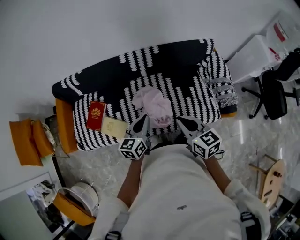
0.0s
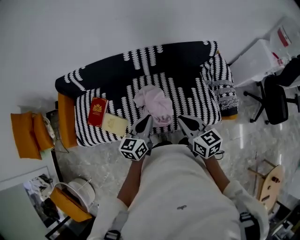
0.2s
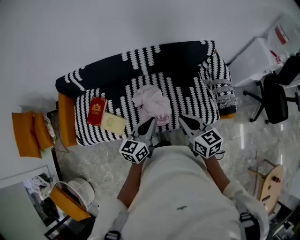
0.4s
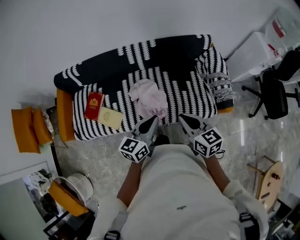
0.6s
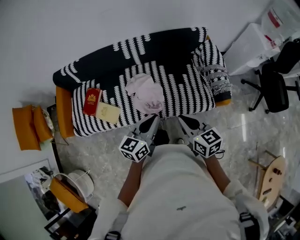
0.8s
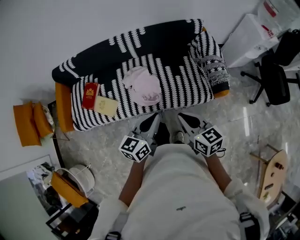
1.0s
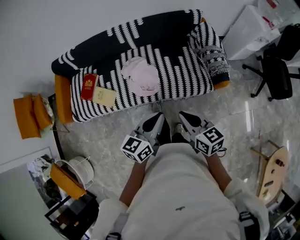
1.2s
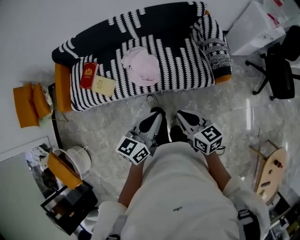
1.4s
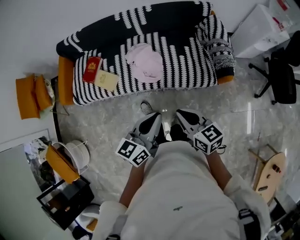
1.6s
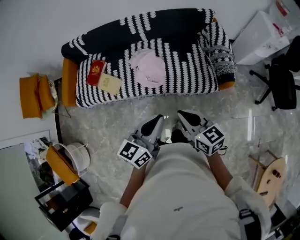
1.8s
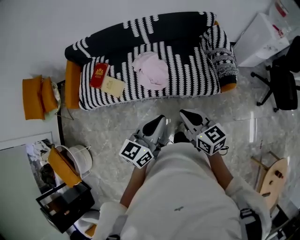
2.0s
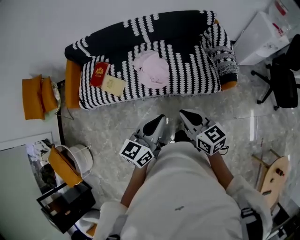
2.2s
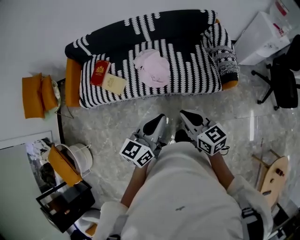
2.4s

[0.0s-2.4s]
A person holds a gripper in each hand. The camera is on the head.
0.0s to 1.2s: Both grippers move backward and to the right, some 30 cm.
1.2s to 2.4s: The two grippers go approximately 5 cm backward.

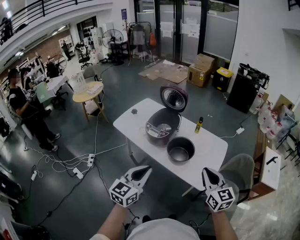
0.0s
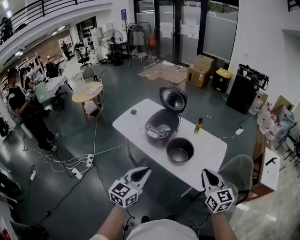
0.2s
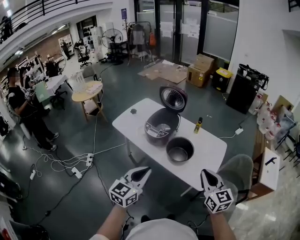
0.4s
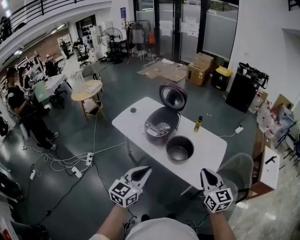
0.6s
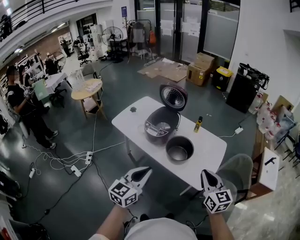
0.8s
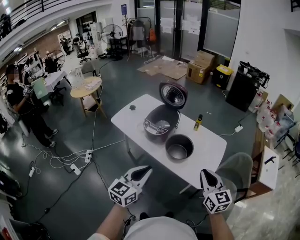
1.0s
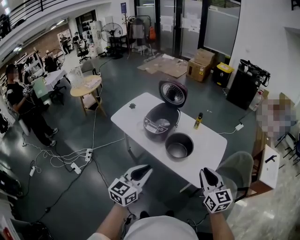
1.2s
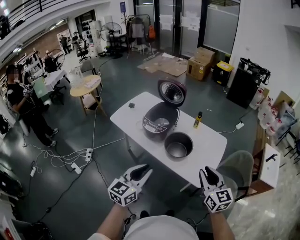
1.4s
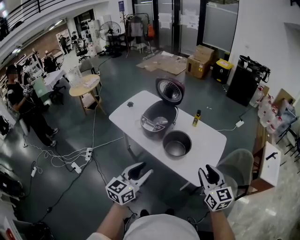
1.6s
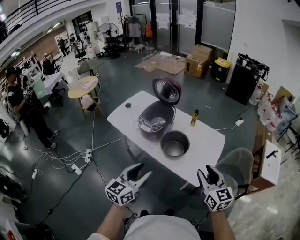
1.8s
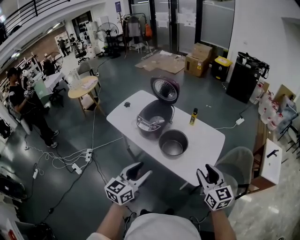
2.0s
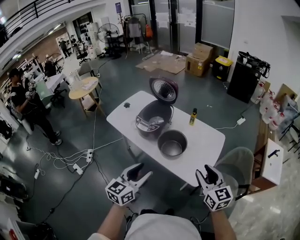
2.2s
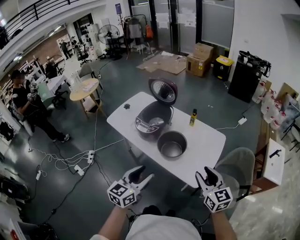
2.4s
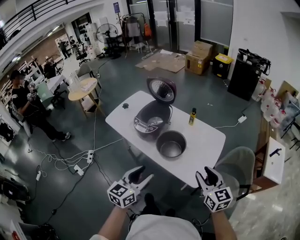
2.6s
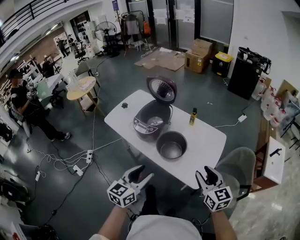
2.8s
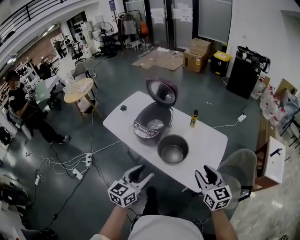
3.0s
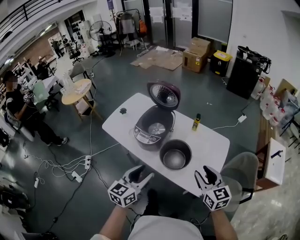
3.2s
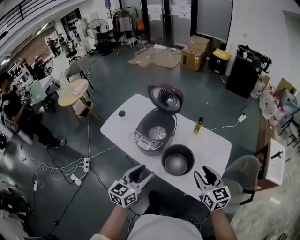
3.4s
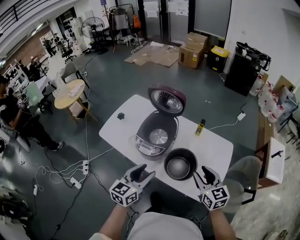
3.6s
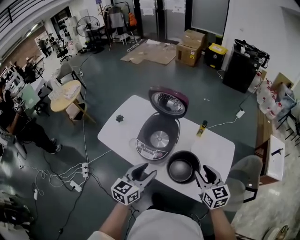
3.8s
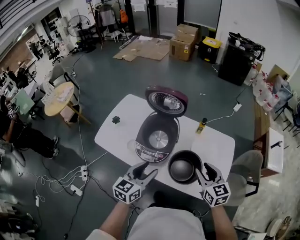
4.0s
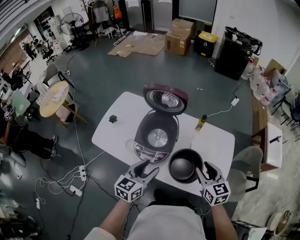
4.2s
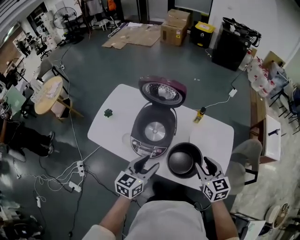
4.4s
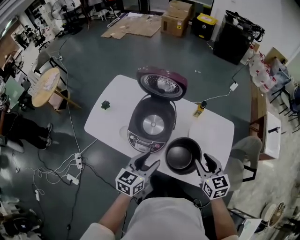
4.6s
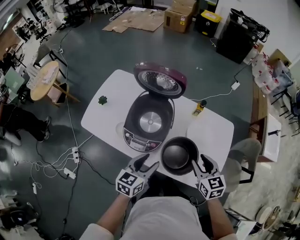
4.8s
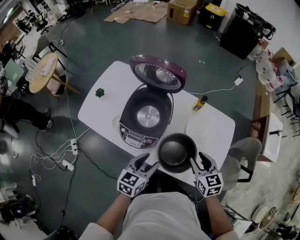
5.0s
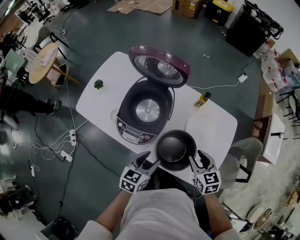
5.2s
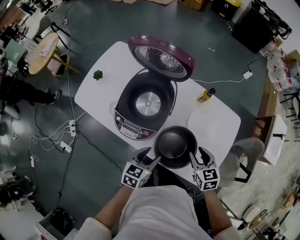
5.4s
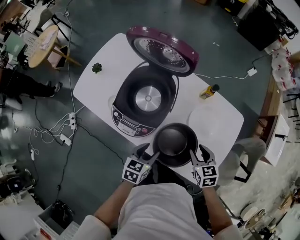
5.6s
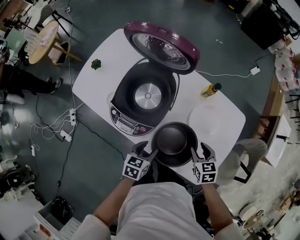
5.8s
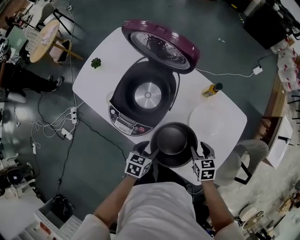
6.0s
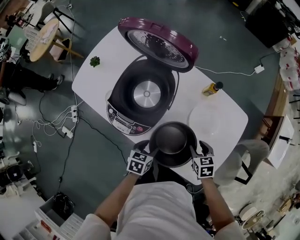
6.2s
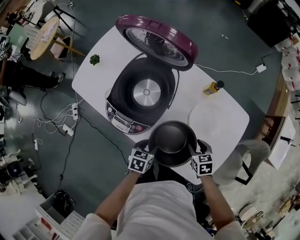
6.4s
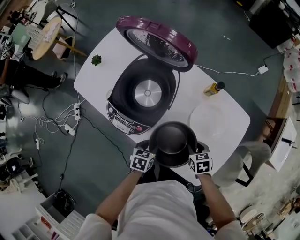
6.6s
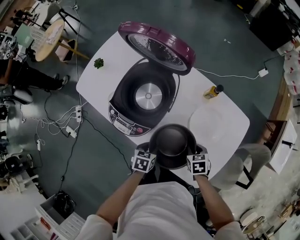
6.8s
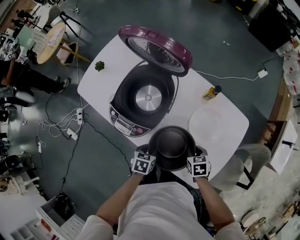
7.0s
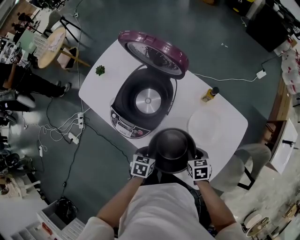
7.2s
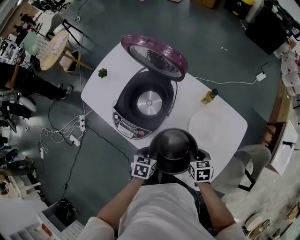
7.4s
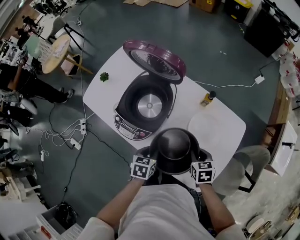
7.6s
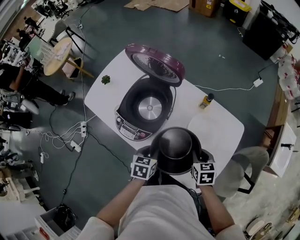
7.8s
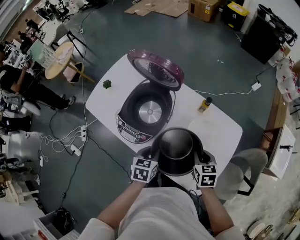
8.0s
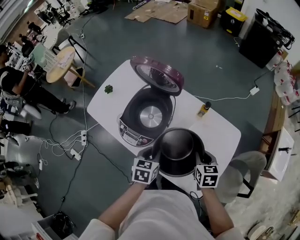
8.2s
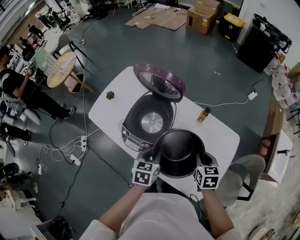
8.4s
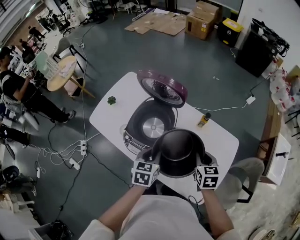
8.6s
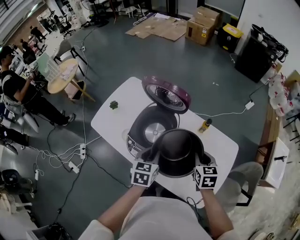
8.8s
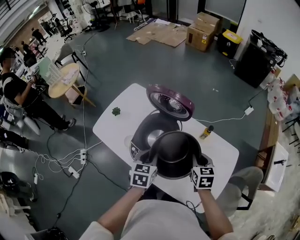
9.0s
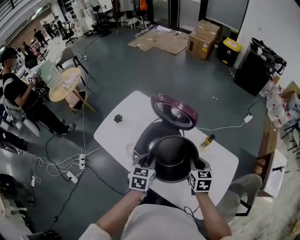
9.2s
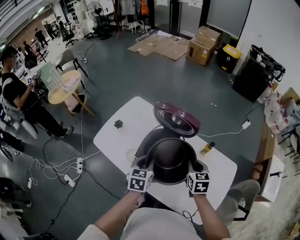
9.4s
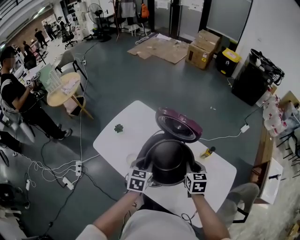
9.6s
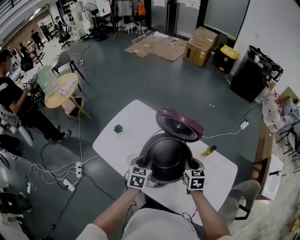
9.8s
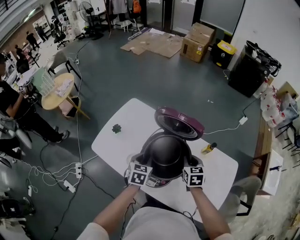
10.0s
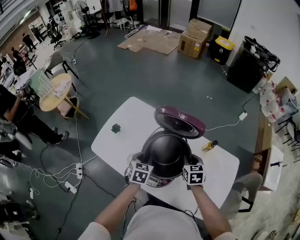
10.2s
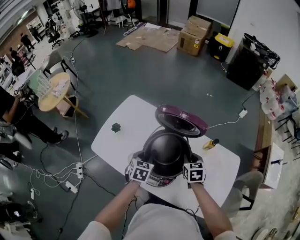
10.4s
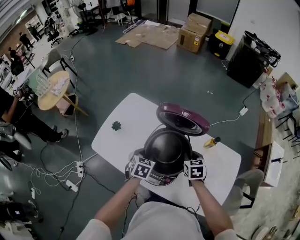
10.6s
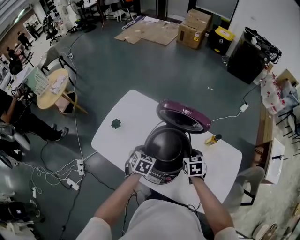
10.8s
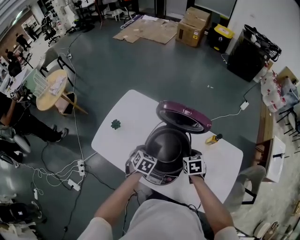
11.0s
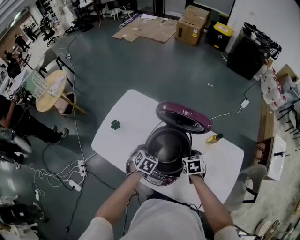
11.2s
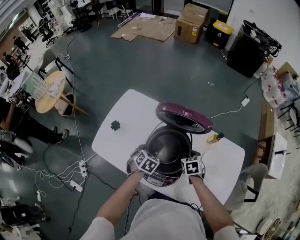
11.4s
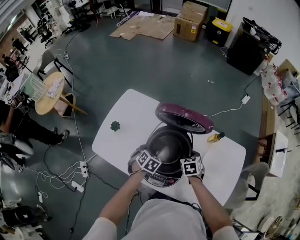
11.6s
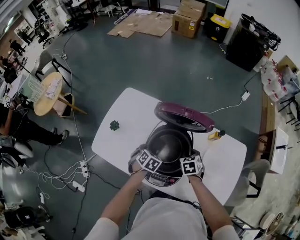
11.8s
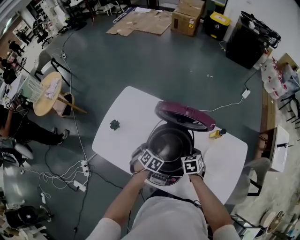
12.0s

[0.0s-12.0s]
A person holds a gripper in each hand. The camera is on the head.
0.0s to 1.6s: The left gripper opens its fingers; the right gripper opens its fingers.
1.6s to 3.0s: Both grippers move forward, about 10 cm.
3.0s to 4.4s: Both grippers move forward and to the left, some 25 cm.
4.4s to 6.0s: The two grippers go roughly 25 cm downward. The right gripper changes its angle by about 30 degrees. Meanwhile the left gripper tilts its fingers roughly 30 degrees downward.
6.0s to 7.6s: The left gripper changes place by roughly 5 cm, and closes up, while the right gripper closes.
7.6s to 9.0s: Both grippers move upward, forward and to the left, roughly 20 cm.
9.0s to 10.4s: Both grippers travel together to the left, forward and downward, approximately 15 cm.
10.4s to 12.0s: The two grippers go some 10 cm downward. The left gripper swivels roughly 30 degrees.

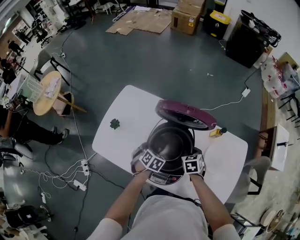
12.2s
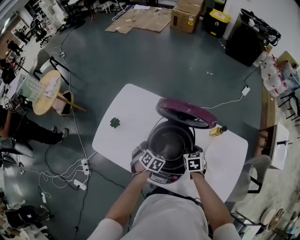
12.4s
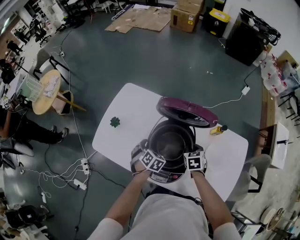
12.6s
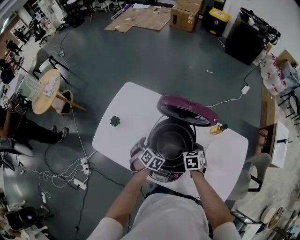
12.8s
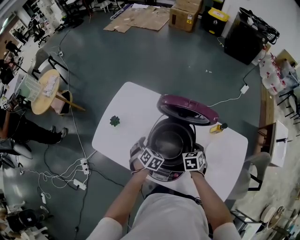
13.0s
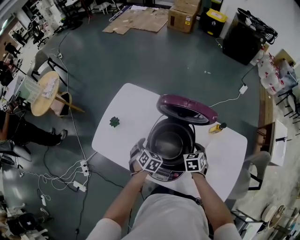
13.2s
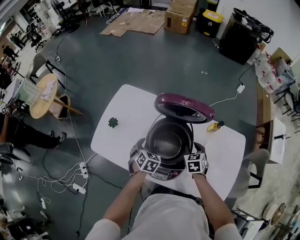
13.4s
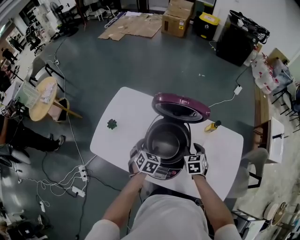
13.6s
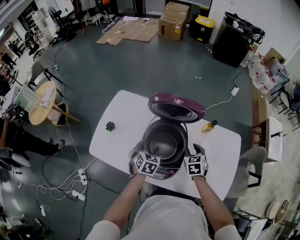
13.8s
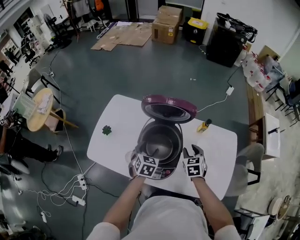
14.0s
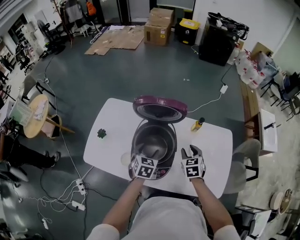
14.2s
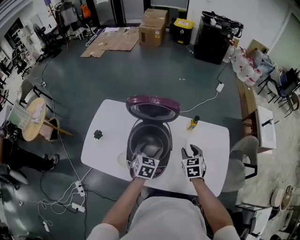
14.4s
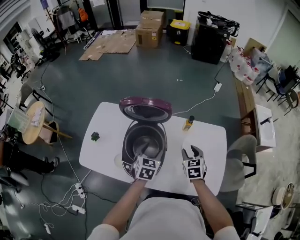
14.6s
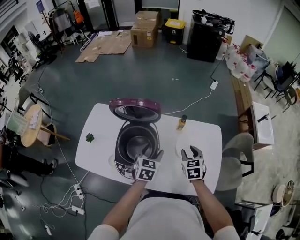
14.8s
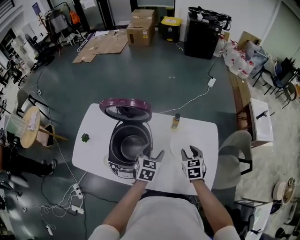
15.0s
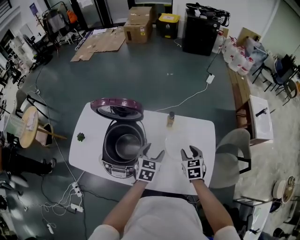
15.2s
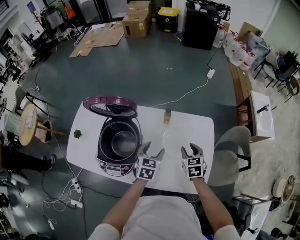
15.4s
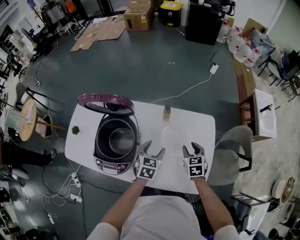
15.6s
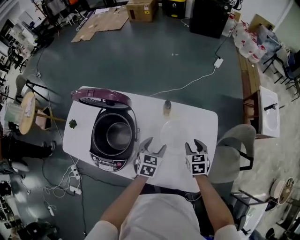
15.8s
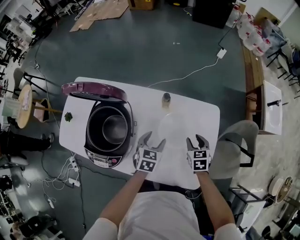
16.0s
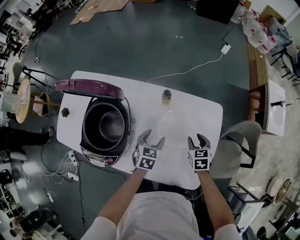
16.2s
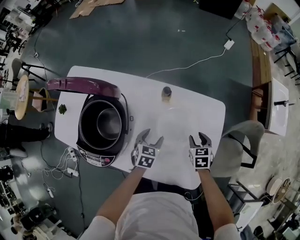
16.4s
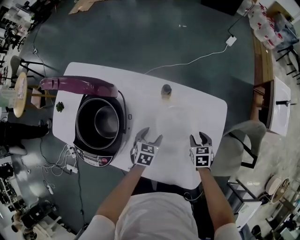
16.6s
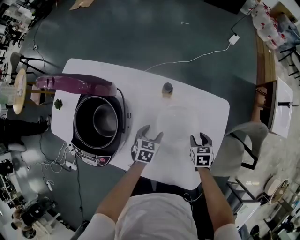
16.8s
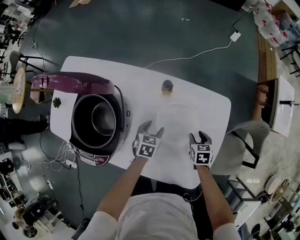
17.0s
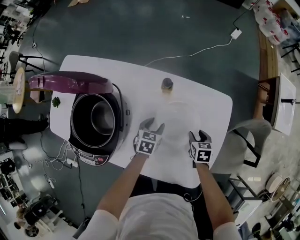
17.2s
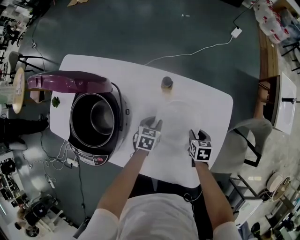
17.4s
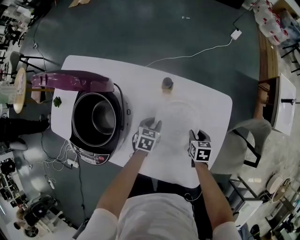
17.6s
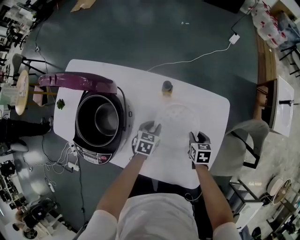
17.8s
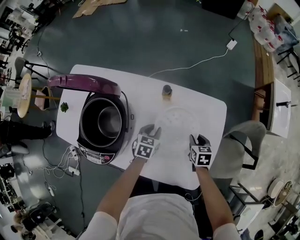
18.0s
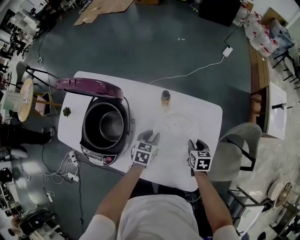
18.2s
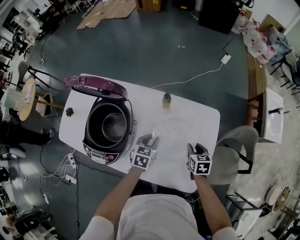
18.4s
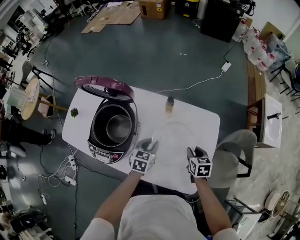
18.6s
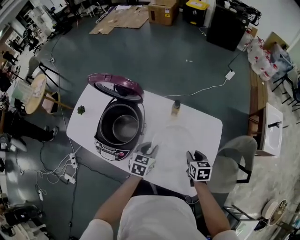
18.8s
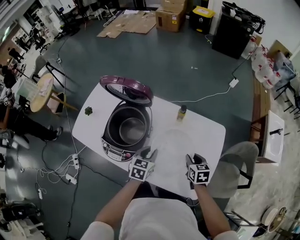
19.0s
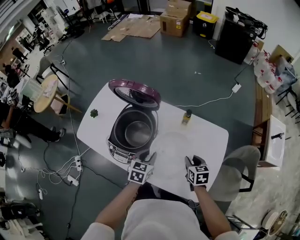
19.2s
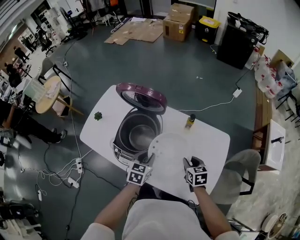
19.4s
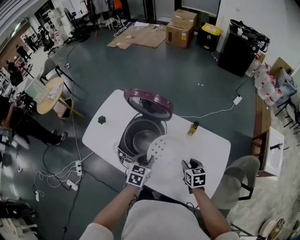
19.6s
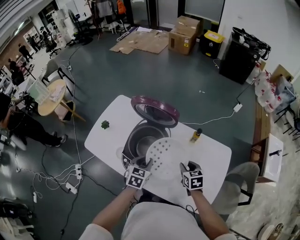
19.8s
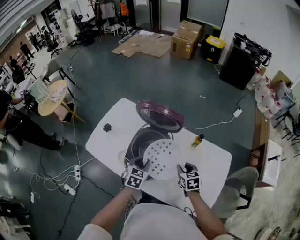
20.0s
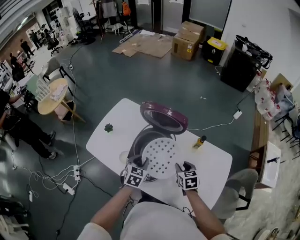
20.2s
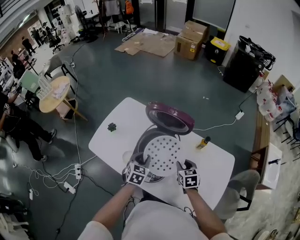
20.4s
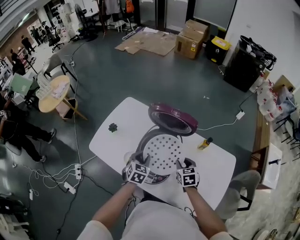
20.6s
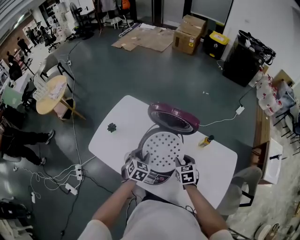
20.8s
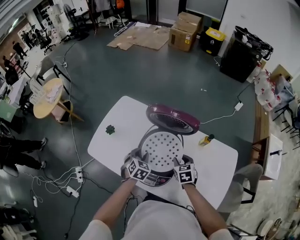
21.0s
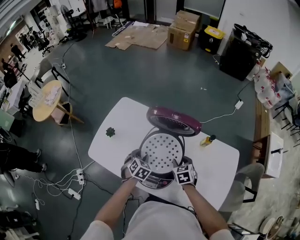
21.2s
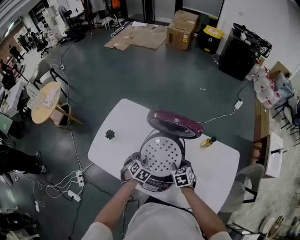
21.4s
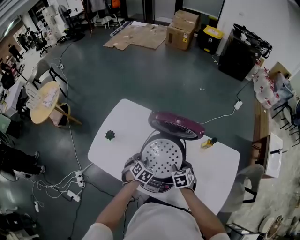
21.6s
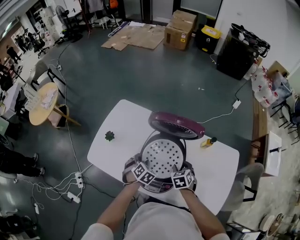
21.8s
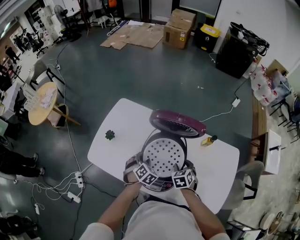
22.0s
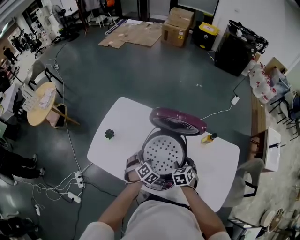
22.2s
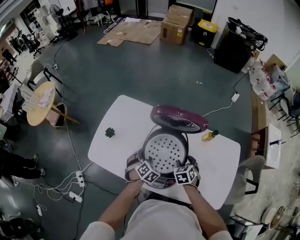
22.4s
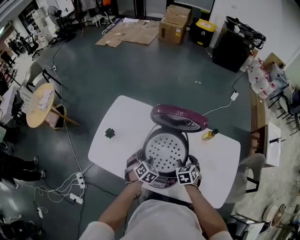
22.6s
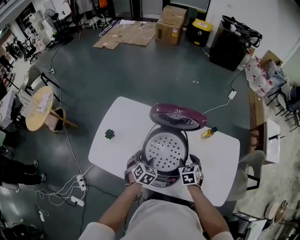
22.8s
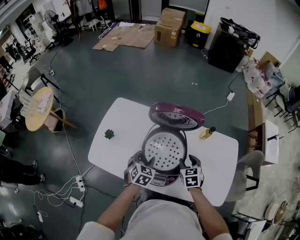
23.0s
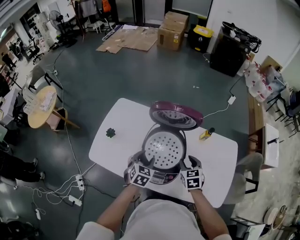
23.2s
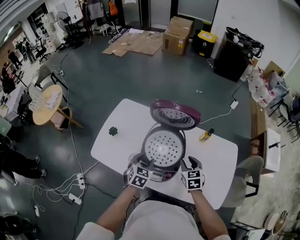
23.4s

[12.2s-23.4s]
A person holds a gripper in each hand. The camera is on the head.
12.2s to 13.8s: Both grippers travel together upward, some 5 cm. The left gripper opens.
13.8s to 15.4s: The two grippers go some 30 cm to the right.
15.4s to 17.0s: The right gripper goes roughly 25 cm downward and to the right, and changes its angle by some 20 degrees, while the left gripper goes some 25 cm downward, and turns by some 20 degrees.
17.0s to 18.6s: The grippers both shift upward by roughly 15 cm. The left gripper closes its fingers.
18.6s to 20.2s: The two grippers go some 25 cm to the left. The right gripper rotates some 20 degrees.
20.2s to 21.8s: The left gripper moves downward, to the left and forward, some 15 cm, and swivels about 30 degrees. Meanwhile the right gripper goes about 10 cm to the left and downward, and turns by roughly 20 degrees.
21.8s to 23.4s: The left gripper moves upward and backward, some 10 cm, and swivels roughly 30 degrees; the right gripper moves upward, about 10 cm.
